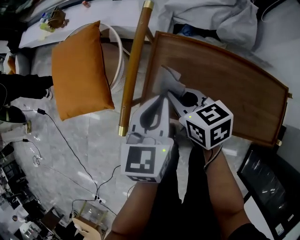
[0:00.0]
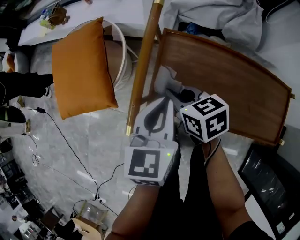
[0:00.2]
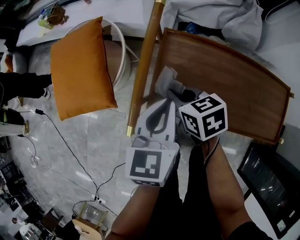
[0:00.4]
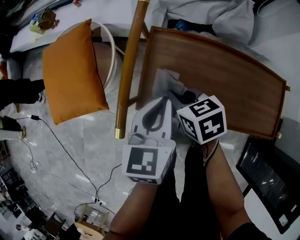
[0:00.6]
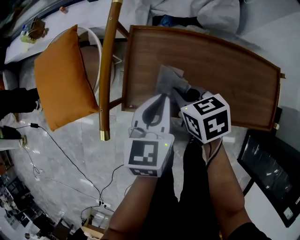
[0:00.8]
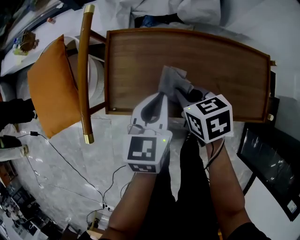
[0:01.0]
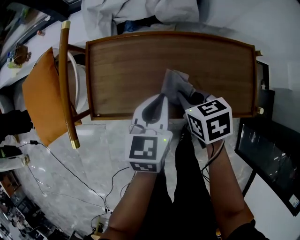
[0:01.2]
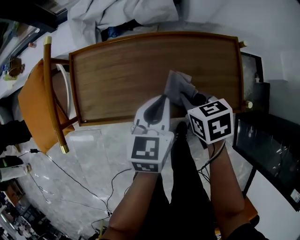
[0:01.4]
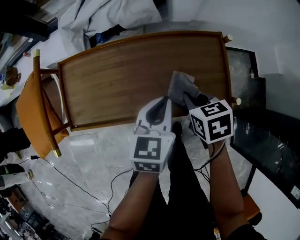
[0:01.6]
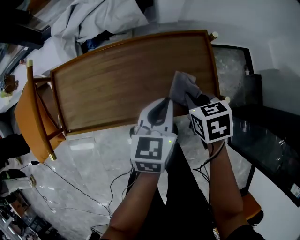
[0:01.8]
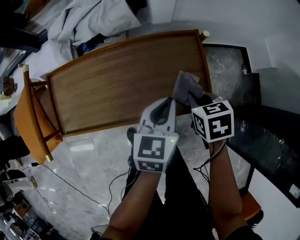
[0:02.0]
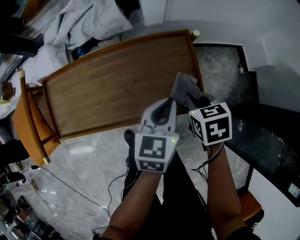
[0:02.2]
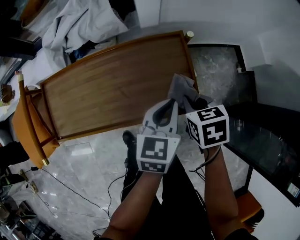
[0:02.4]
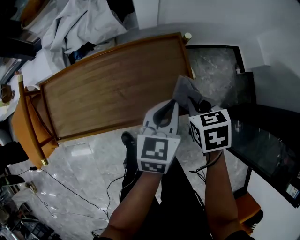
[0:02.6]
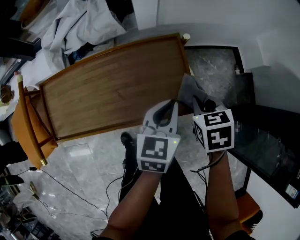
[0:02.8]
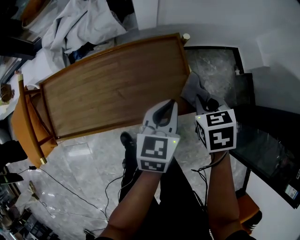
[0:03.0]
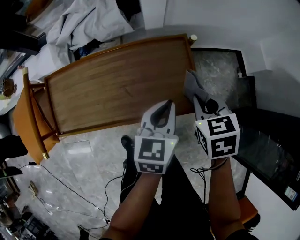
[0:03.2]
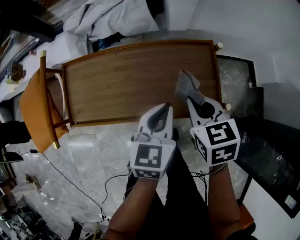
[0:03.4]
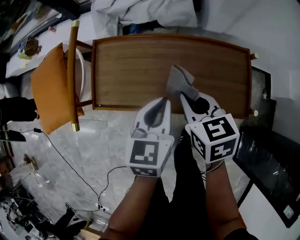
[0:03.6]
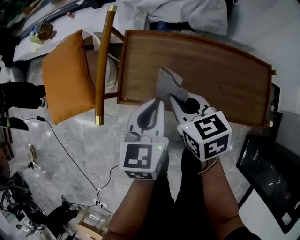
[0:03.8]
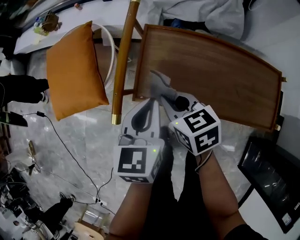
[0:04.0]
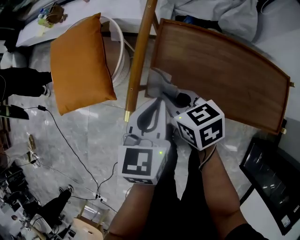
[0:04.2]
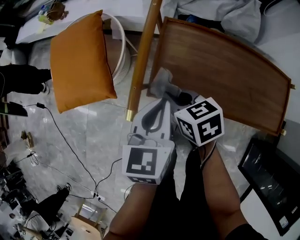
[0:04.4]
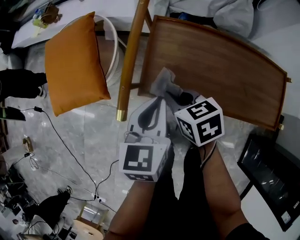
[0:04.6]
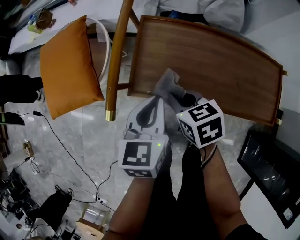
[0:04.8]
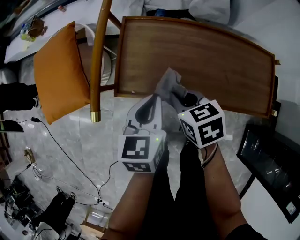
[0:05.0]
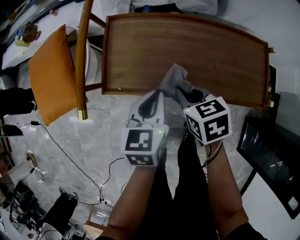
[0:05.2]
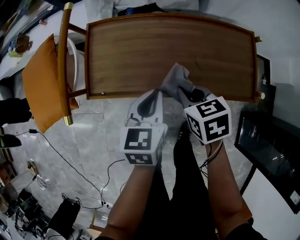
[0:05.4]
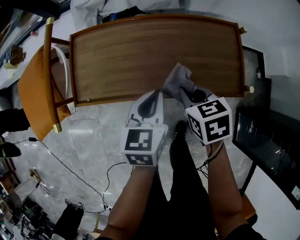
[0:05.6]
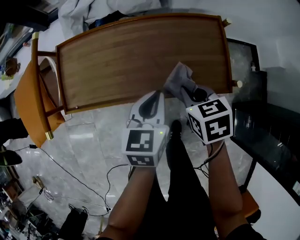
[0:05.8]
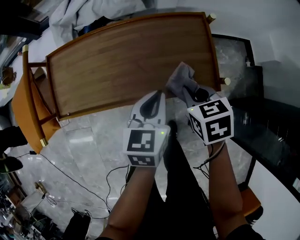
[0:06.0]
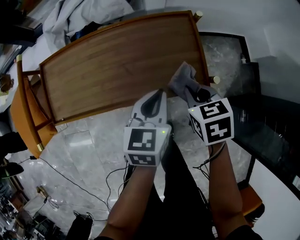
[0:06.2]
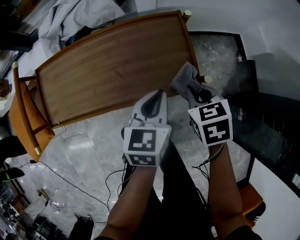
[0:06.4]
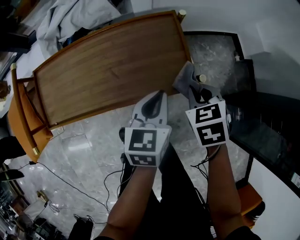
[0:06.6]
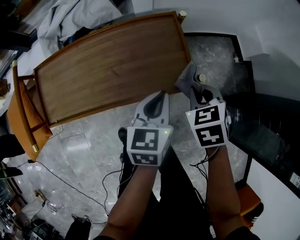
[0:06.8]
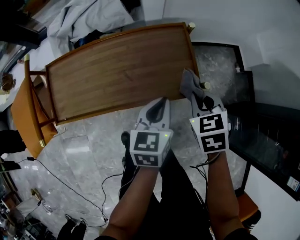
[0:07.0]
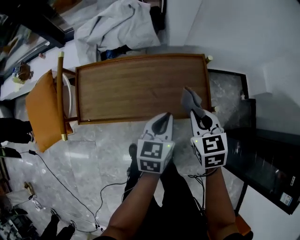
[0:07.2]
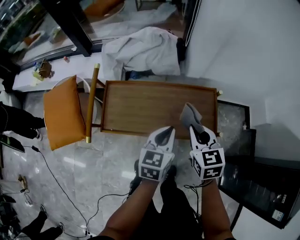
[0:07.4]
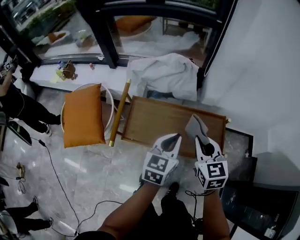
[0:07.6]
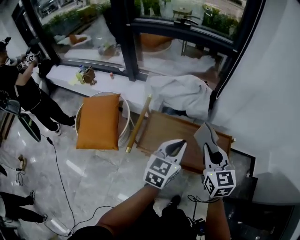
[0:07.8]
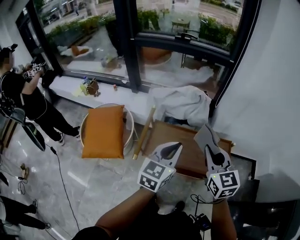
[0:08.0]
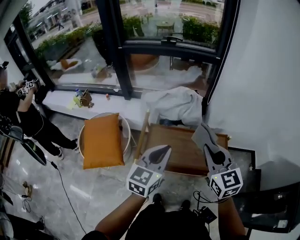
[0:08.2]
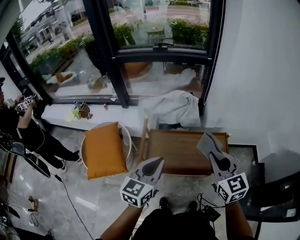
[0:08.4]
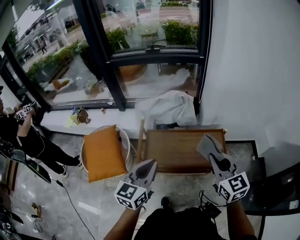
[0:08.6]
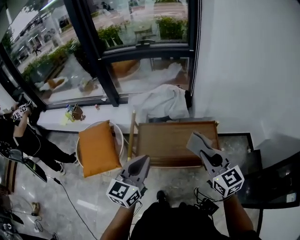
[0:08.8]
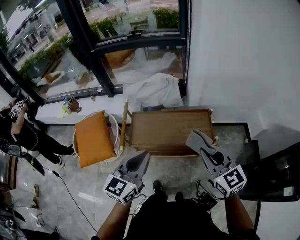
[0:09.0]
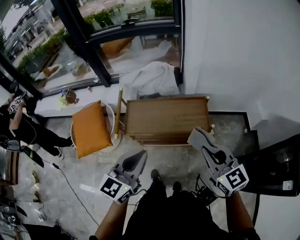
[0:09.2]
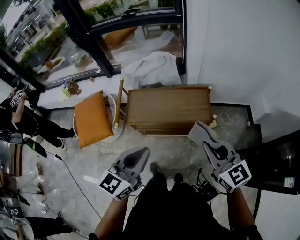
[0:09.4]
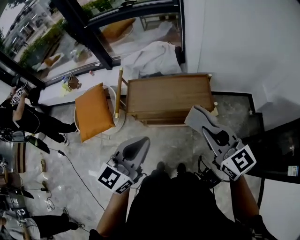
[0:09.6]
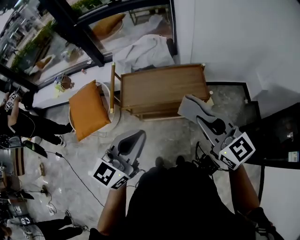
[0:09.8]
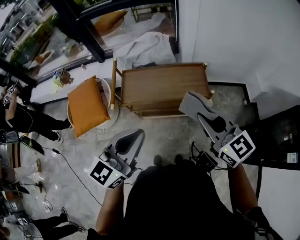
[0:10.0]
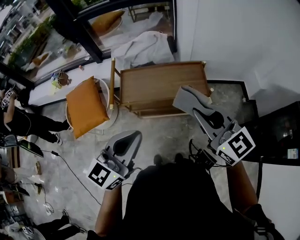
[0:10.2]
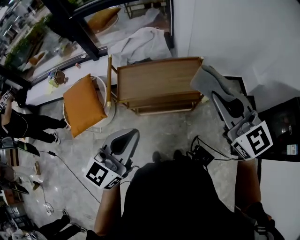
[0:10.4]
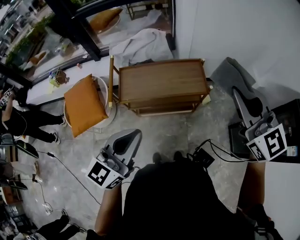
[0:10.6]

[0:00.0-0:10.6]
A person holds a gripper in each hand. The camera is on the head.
0:00.0 to 0:01.6: The left gripper ends up roughly 30 cm from where it was, and changes its angle by some 30 degrees. Meanwhile the right gripper changes place by some 40 cm, and rotates about 40 degrees.
0:01.6 to 0:03.0: The two grippers go some 15 cm to the right.
0:03.0 to 0:04.6: The pair of grippers is taken roughly 50 cm. The right gripper turns by some 40 degrees. Meanwhile the left gripper changes its angle by some 30 degrees.
0:04.6 to 0:06.0: The right gripper changes place by about 40 cm, and swivels about 30 degrees, while the left gripper changes place by about 35 cm, and changes its angle by about 20 degrees.
0:06.0 to 0:07.6: The two grippers go some 30 cm upward and to the left. The right gripper swivels approximately 30 degrees.
0:07.6 to 0:09.0: The left gripper is displaced backward, upward and to the left by some 25 cm. The right gripper travels backward and upward by about 25 cm.
0:09.0 to 0:10.6: The left gripper shifts approximately 10 cm backward. The right gripper moves upward, to the right and backward, some 15 cm.

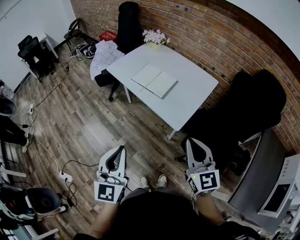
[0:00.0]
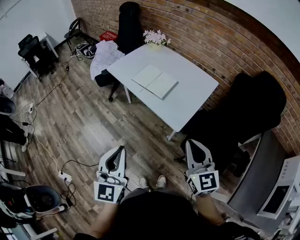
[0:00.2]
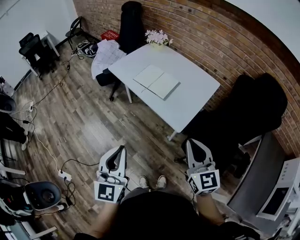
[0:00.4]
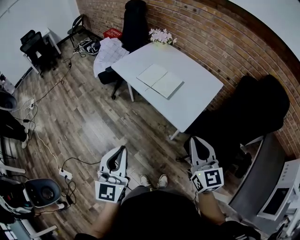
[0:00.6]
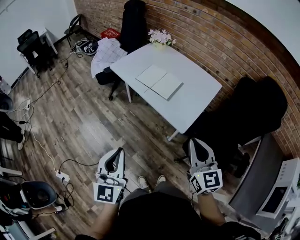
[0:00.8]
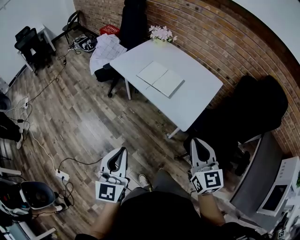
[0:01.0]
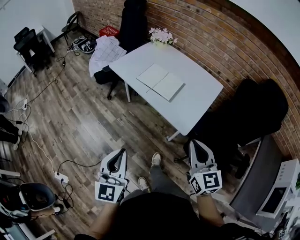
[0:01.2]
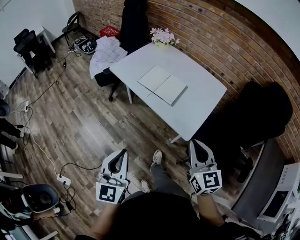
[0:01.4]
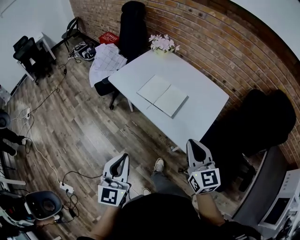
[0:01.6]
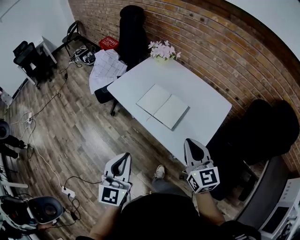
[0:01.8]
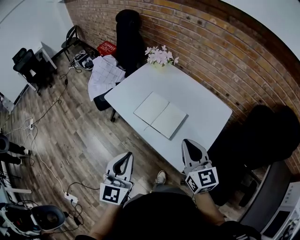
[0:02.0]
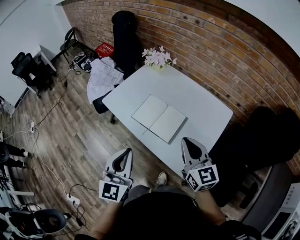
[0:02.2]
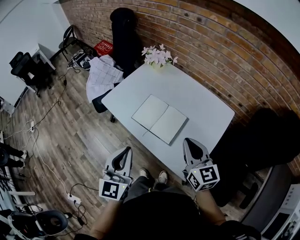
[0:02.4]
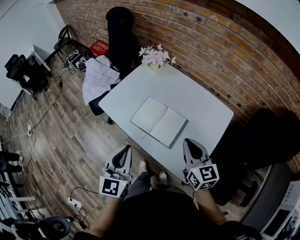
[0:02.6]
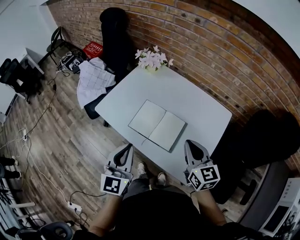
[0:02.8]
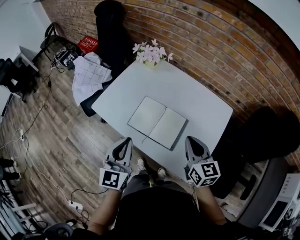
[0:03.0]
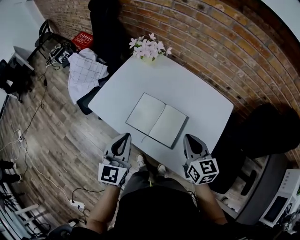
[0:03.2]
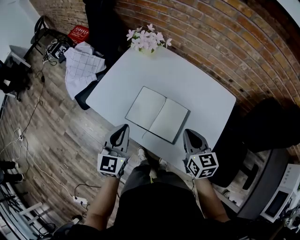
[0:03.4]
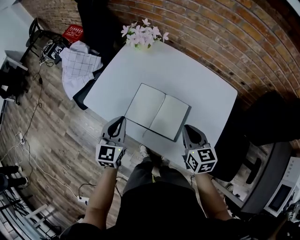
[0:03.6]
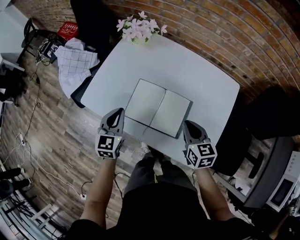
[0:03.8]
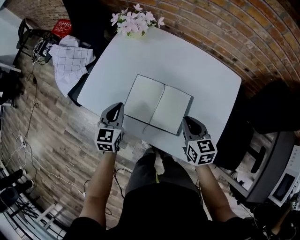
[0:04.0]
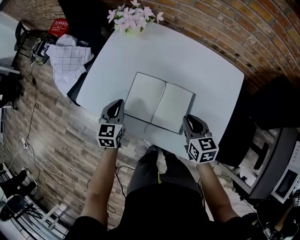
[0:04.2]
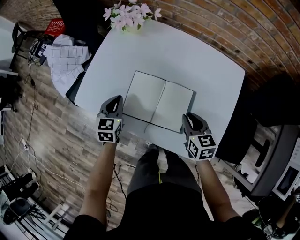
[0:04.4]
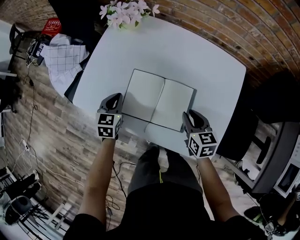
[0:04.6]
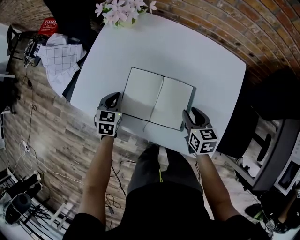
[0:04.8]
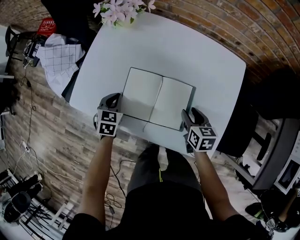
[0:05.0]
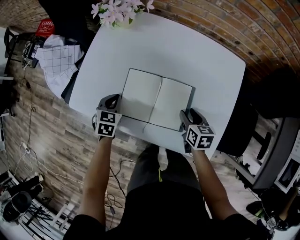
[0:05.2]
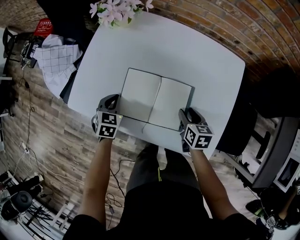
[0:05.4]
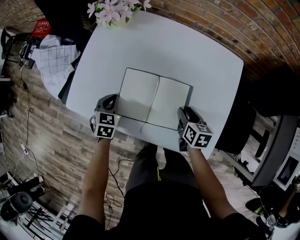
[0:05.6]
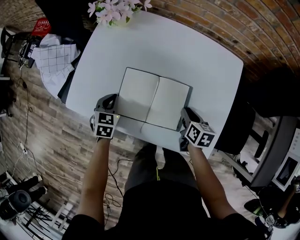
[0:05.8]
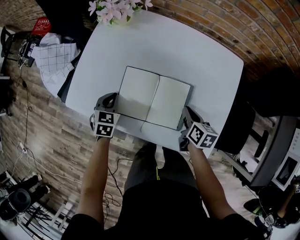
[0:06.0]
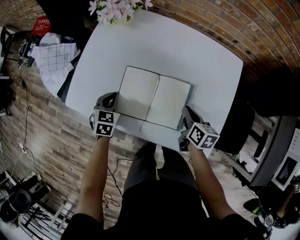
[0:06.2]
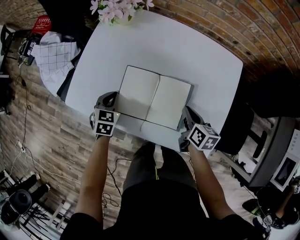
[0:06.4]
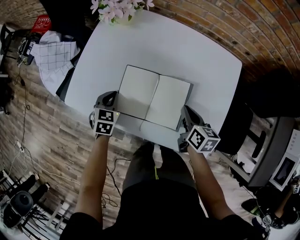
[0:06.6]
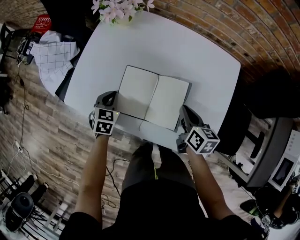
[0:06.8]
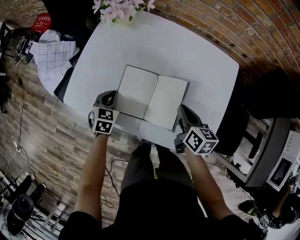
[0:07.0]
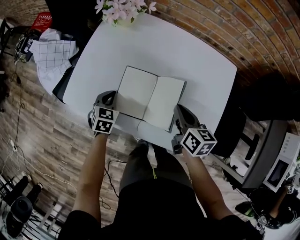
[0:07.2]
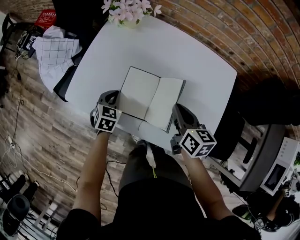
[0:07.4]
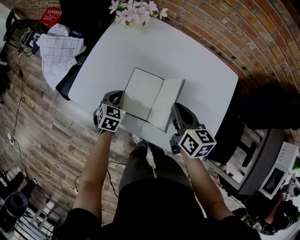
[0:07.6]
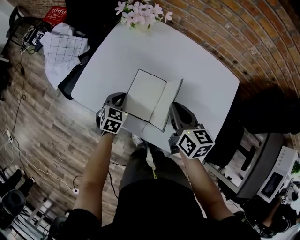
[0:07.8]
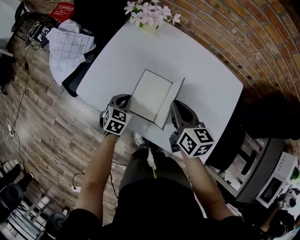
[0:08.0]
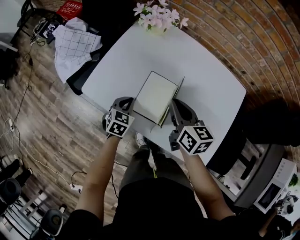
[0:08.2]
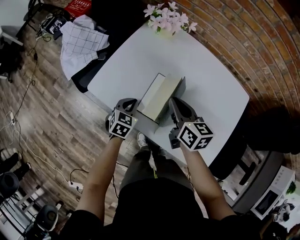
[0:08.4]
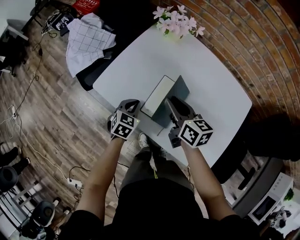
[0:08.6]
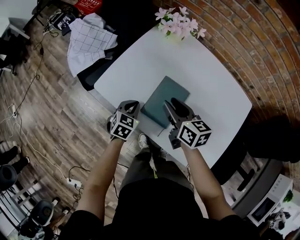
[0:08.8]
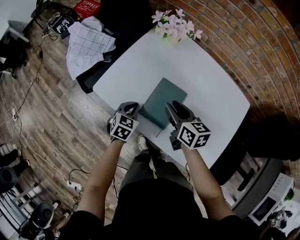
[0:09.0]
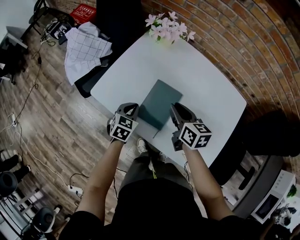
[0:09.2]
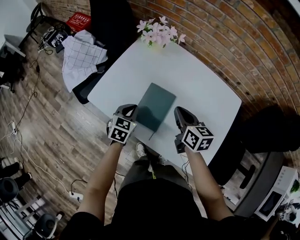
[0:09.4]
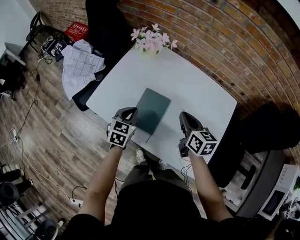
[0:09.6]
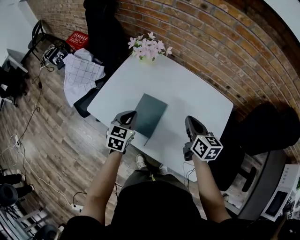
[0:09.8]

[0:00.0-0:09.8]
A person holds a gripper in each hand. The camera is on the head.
0:00.0 to 0:01.4: The left gripper moves forward, to the left and downward, roughly 10 cm. The right gripper heads forward and to the left, covering about 10 cm.
0:01.4 to 0:02.8: Both grippers travel together forward, approximately 30 cm.
0:02.8 to 0:04.2: The right gripper is displaced downward by roughly 20 cm, and swivels some 20 degrees, while the left gripper moves downward and forward, some 30 cm, and changes its angle by roughly 20 degrees.
0:04.2 to 0:05.6: Both grippers travel together downward, some 10 cm. The left gripper turns by about 20 degrees. Meanwhile the right gripper changes its angle by approximately 30 degrees, and opens its fingers.
0:05.6 to 0:07.0: The right gripper heads upward, covering approximately 10 cm, and closes its fingers.
0:07.0 to 0:08.4: The right gripper travels to the left and upward by some 15 cm, and swivels roughly 20 degrees.
0:08.4 to 0:09.8: The right gripper shifts approximately 15 cm to the right, and opens, then closes once more. Meanwhile the left gripper travels upward by approximately 15 cm.

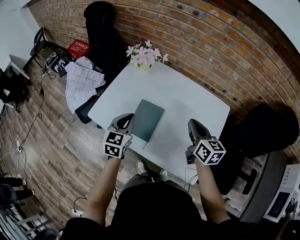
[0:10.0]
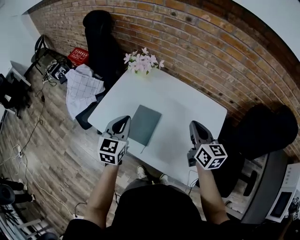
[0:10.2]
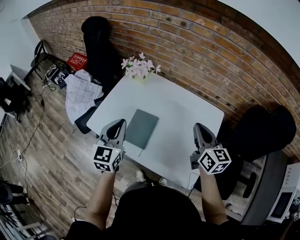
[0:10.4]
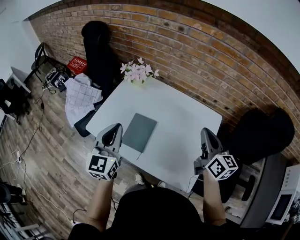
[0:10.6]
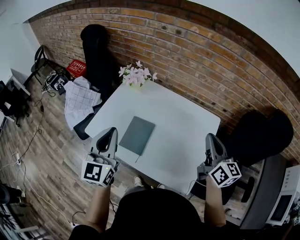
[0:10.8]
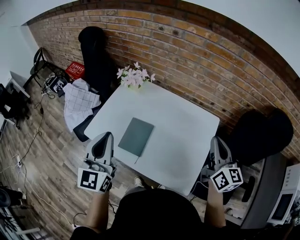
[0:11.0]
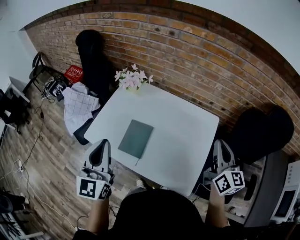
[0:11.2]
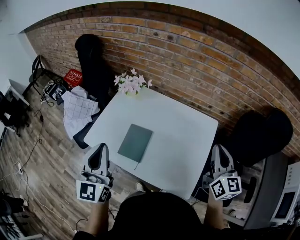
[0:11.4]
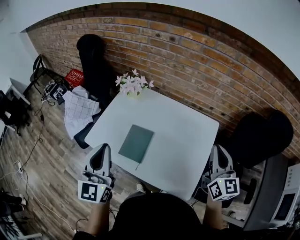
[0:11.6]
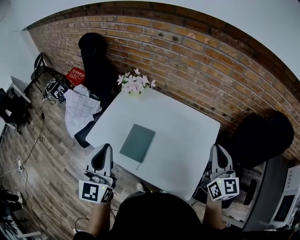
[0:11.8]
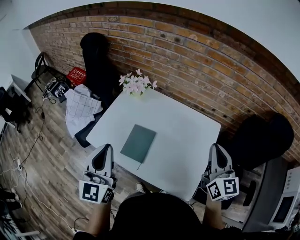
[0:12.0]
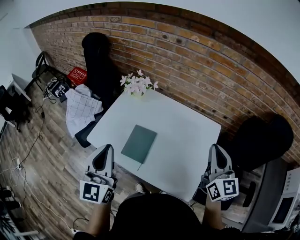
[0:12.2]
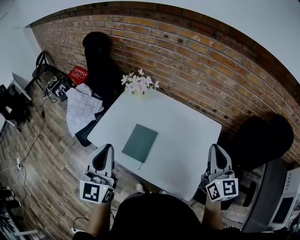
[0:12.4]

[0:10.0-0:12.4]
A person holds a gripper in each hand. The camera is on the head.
0:10.0 to 0:11.2: The left gripper moves upward and backward, approximately 25 cm, and turns by some 30 degrees. The right gripper moves to the right, upward and backward, approximately 20 cm, and swivels about 20 degrees.
0:11.2 to 0:12.4: The right gripper travels to the left by approximately 5 cm.
